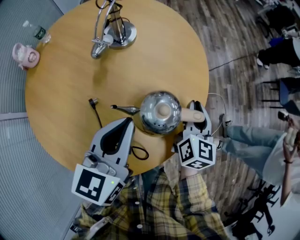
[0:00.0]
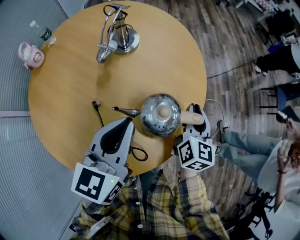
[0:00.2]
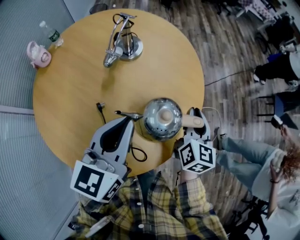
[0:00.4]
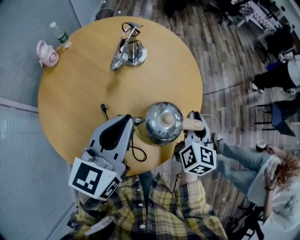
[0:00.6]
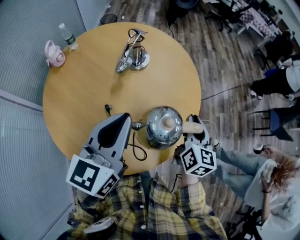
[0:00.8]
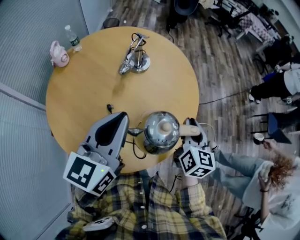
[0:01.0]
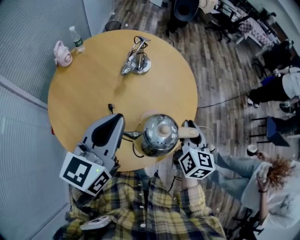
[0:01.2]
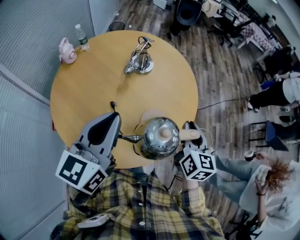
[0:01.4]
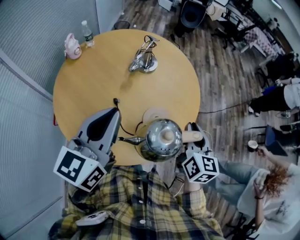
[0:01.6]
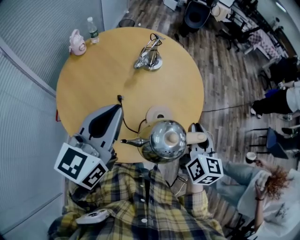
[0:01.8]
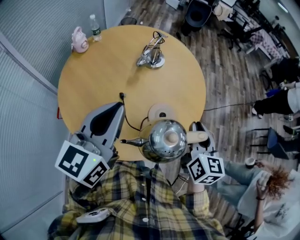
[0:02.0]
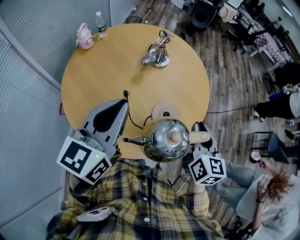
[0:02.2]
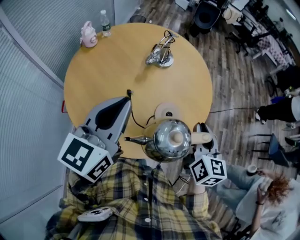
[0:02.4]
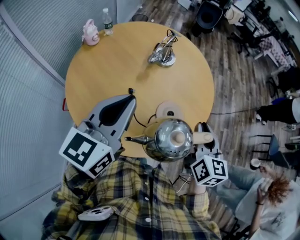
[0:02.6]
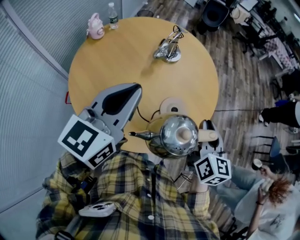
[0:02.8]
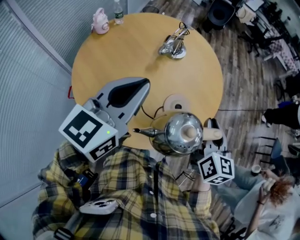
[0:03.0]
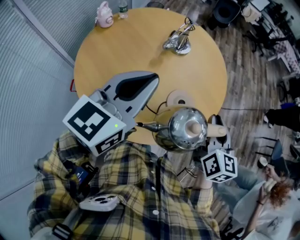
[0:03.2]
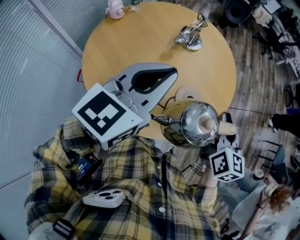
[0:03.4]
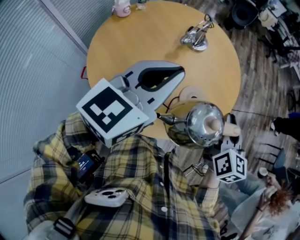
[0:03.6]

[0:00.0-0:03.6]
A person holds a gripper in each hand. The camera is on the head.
0:00.0 to 0:01.8: The left gripper heads upward, backward and to the left, covering about 20 cm. The right gripper goes roughly 20 cm upward and backward, and changes its angle by some 20 degrees.
0:01.8 to 0:03.6: There are only small adjustments of the grippers.

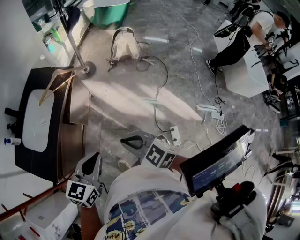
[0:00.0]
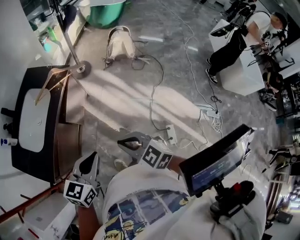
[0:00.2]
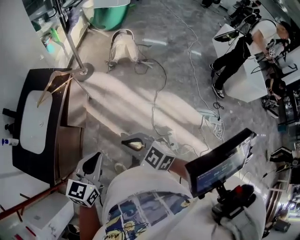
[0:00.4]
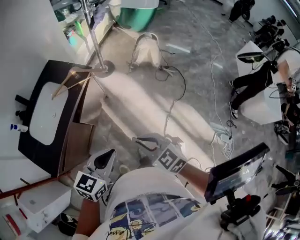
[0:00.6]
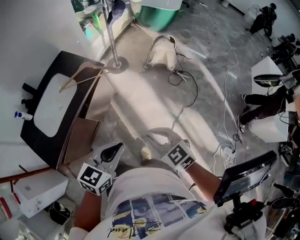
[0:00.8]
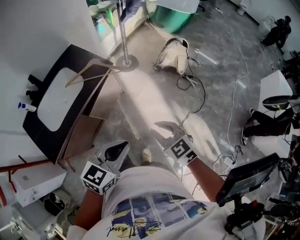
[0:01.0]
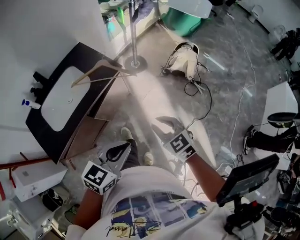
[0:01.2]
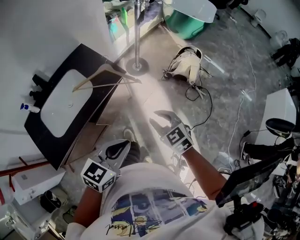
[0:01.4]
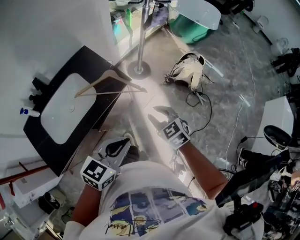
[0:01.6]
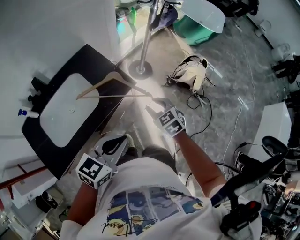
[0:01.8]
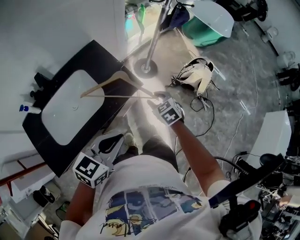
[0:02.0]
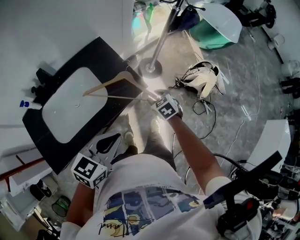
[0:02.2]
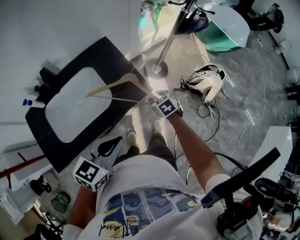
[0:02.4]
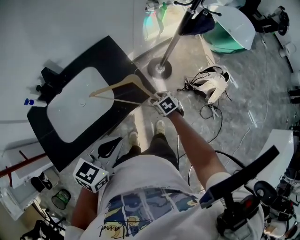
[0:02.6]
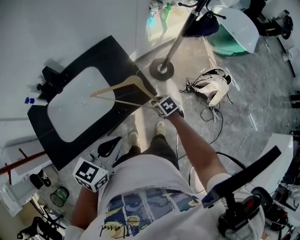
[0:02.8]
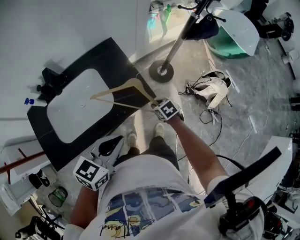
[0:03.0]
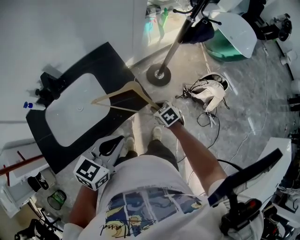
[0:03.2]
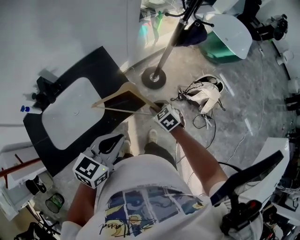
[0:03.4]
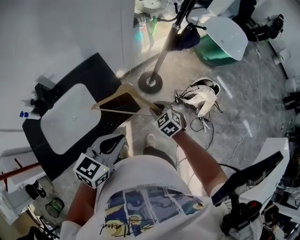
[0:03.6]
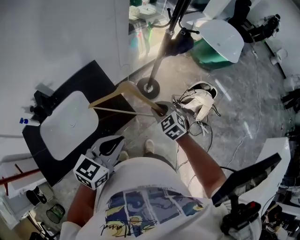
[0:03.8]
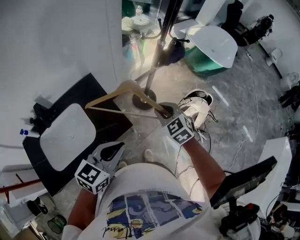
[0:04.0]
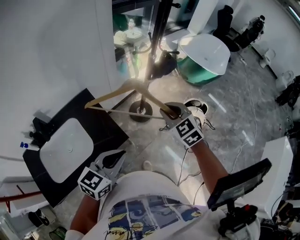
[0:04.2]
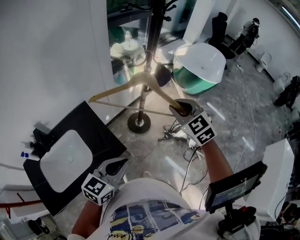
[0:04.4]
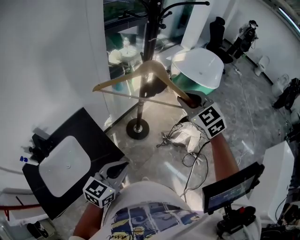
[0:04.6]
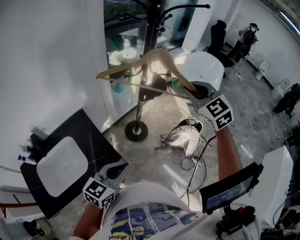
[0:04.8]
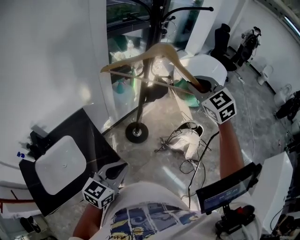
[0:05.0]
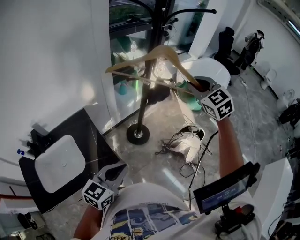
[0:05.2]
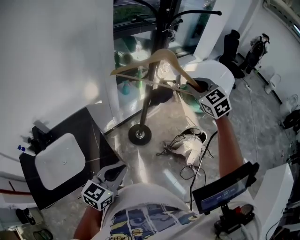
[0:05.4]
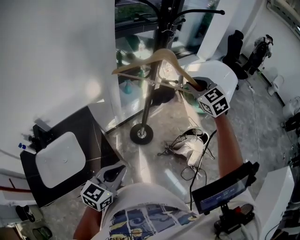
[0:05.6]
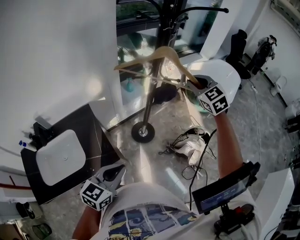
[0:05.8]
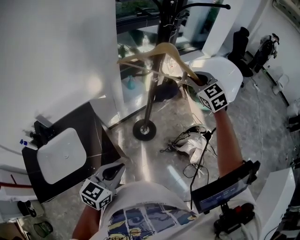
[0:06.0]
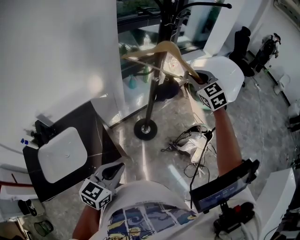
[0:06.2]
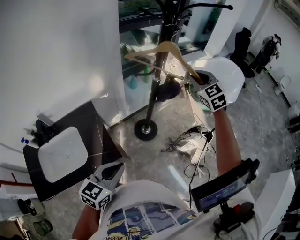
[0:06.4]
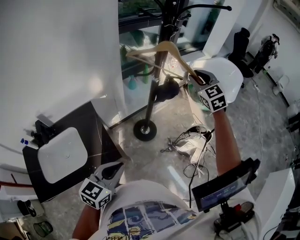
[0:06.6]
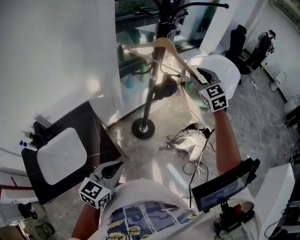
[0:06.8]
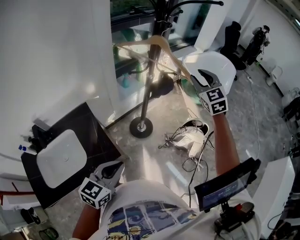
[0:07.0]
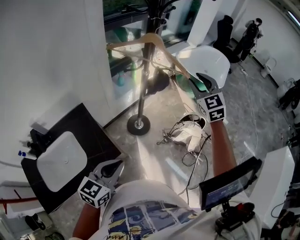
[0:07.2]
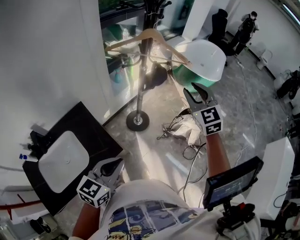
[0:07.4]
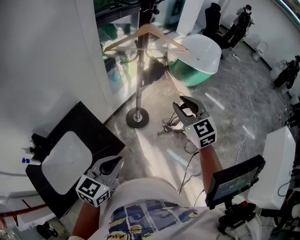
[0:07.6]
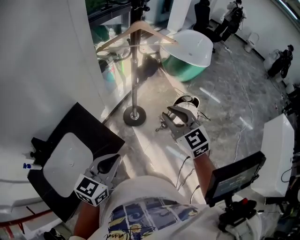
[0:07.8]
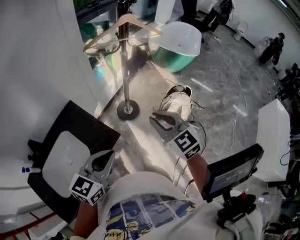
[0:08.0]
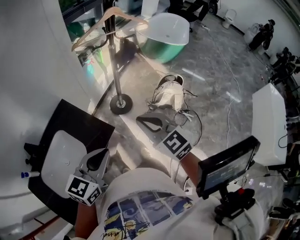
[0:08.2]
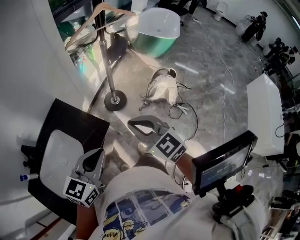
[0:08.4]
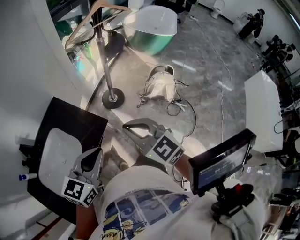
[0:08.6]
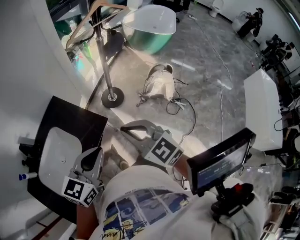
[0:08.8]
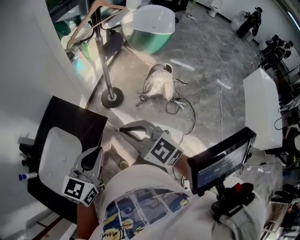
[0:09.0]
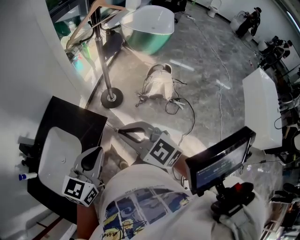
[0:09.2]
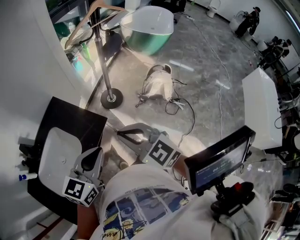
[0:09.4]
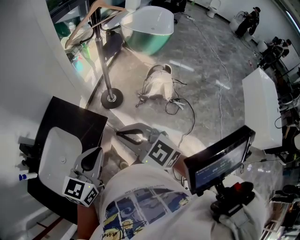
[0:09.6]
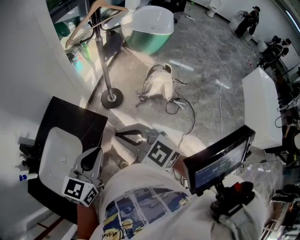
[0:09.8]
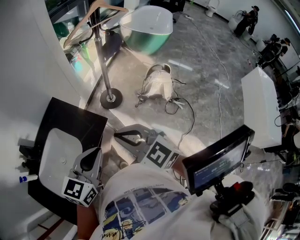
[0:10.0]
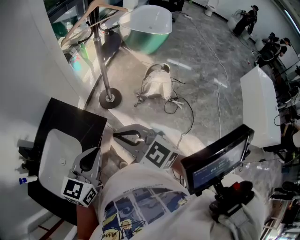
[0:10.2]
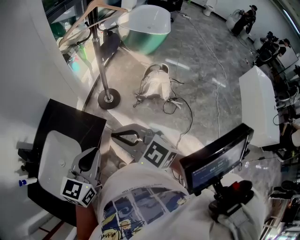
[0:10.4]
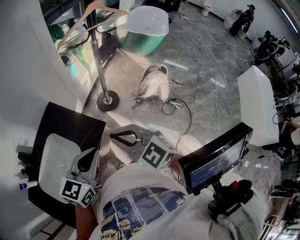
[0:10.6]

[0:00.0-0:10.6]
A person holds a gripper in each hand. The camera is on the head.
0:00.0 to 0:01.6: The two grippers go roughly 35 cm forward. The right gripper opens up.
0:01.6 to 0:03.0: The right gripper moves forward and downward, roughly 30 cm, and changes its angle by roughly 30 degrees; the left gripper shifts approximately 15 cm forward and to the left, and rotates roughly 20 degrees.
0:03.0 to 0:04.6: The right gripper moves upward and to the right, about 50 cm, and points its fingers about 40 degrees further upward; the left gripper moves to the right and forward, some 20 cm.
0:04.6 to 0:06.0: The right gripper is displaced forward by about 20 cm.
0:06.0 to 0:07.6: The right gripper is displaced backward by about 25 cm, and changes its angle by some 20 degrees, while the left gripper ends up approximately 5 cm from where it was.
0:07.6 to 0:09.0: The right gripper is displaced backward and to the left by approximately 30 cm, and closes. The left gripper is displaced backward by about 10 cm.
0:09.0 to 0:10.6: There are only small adjustments of the grippers.

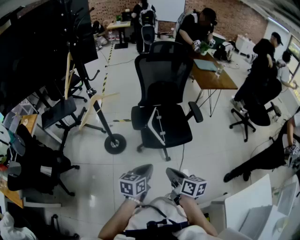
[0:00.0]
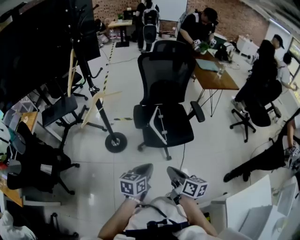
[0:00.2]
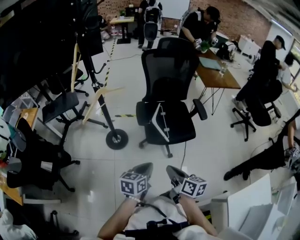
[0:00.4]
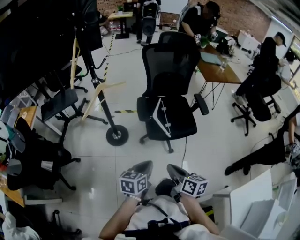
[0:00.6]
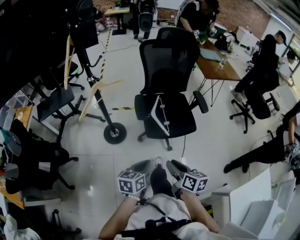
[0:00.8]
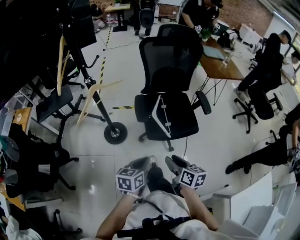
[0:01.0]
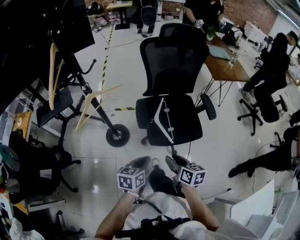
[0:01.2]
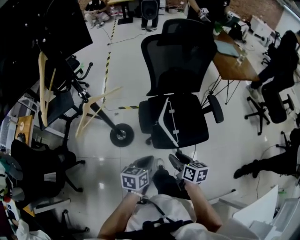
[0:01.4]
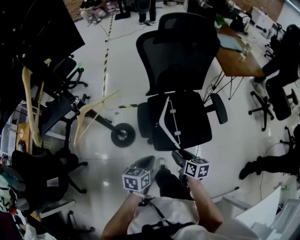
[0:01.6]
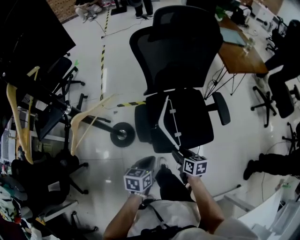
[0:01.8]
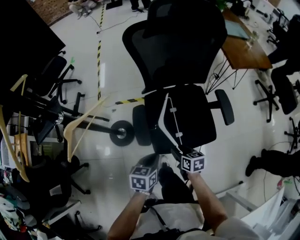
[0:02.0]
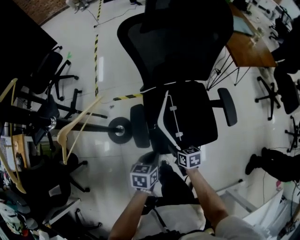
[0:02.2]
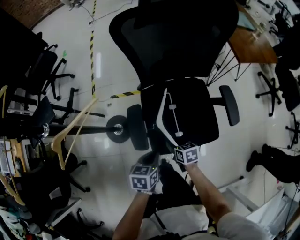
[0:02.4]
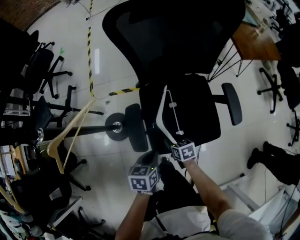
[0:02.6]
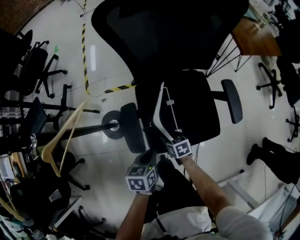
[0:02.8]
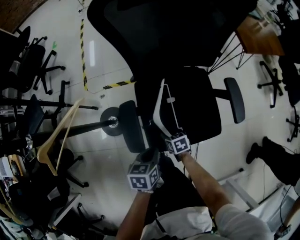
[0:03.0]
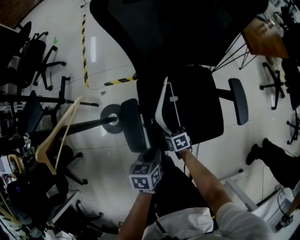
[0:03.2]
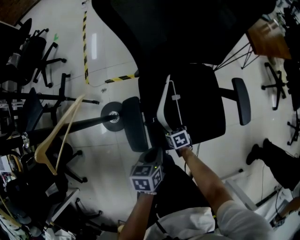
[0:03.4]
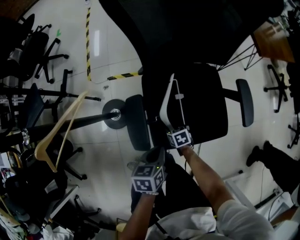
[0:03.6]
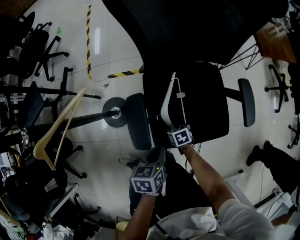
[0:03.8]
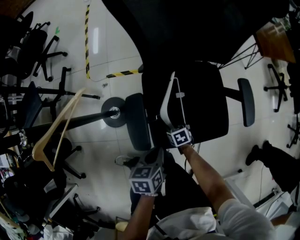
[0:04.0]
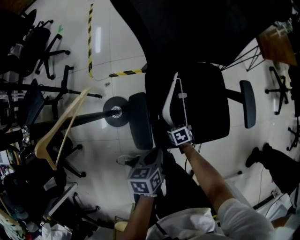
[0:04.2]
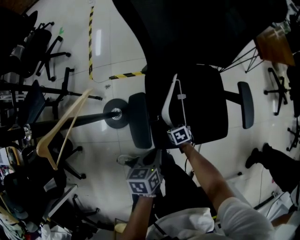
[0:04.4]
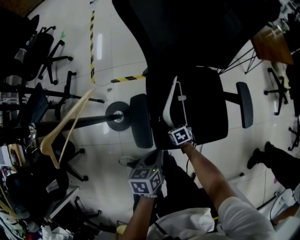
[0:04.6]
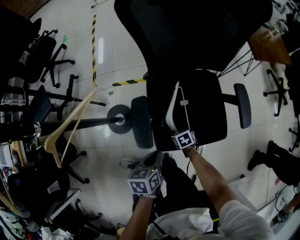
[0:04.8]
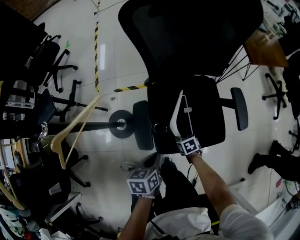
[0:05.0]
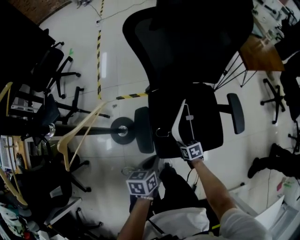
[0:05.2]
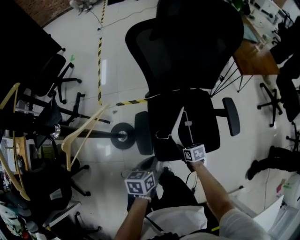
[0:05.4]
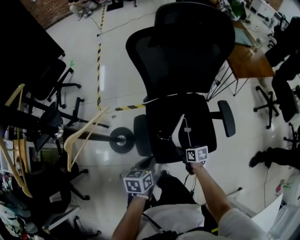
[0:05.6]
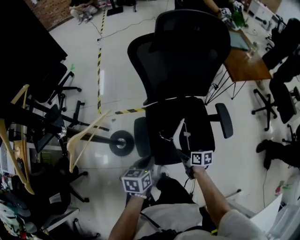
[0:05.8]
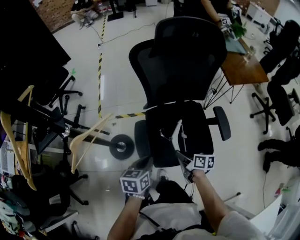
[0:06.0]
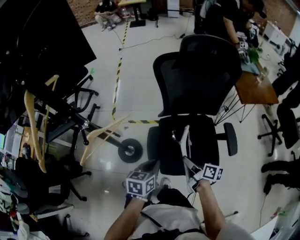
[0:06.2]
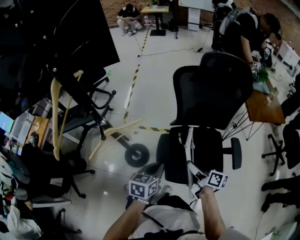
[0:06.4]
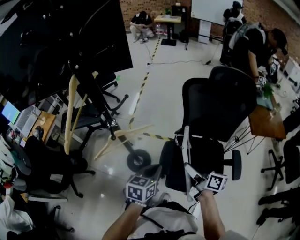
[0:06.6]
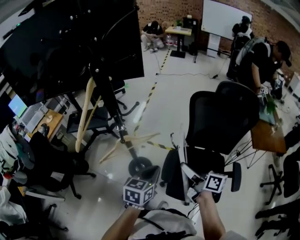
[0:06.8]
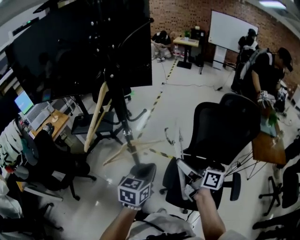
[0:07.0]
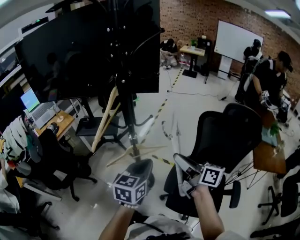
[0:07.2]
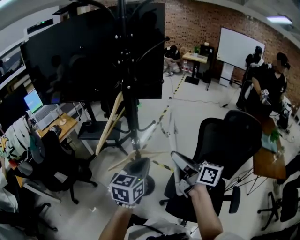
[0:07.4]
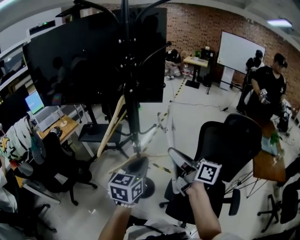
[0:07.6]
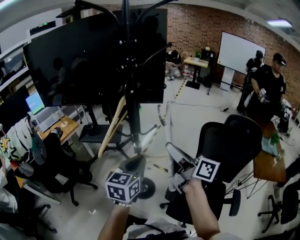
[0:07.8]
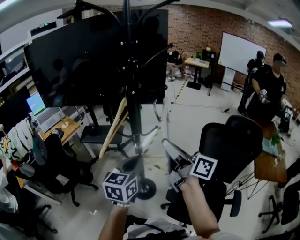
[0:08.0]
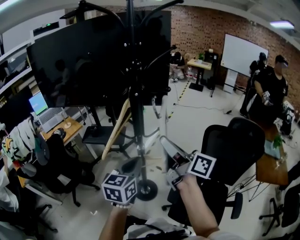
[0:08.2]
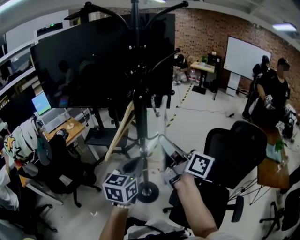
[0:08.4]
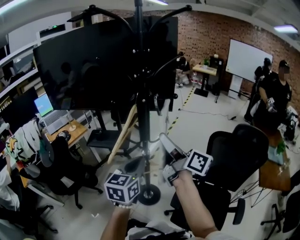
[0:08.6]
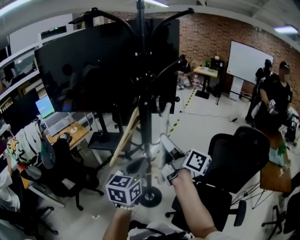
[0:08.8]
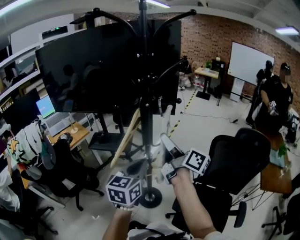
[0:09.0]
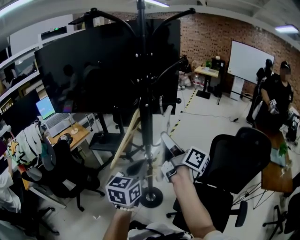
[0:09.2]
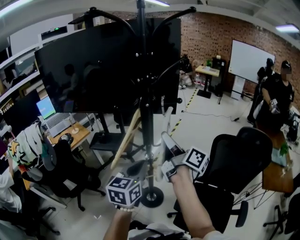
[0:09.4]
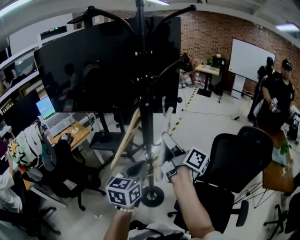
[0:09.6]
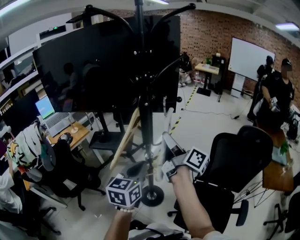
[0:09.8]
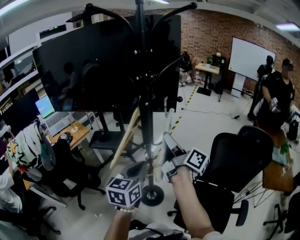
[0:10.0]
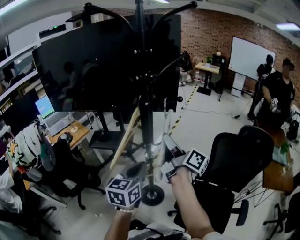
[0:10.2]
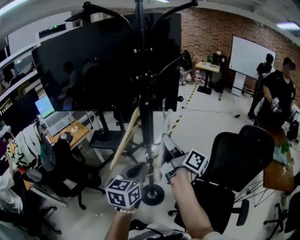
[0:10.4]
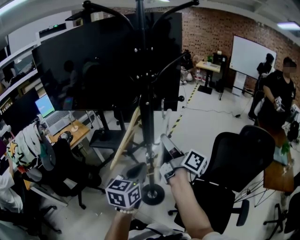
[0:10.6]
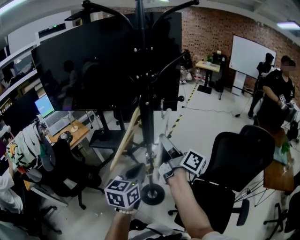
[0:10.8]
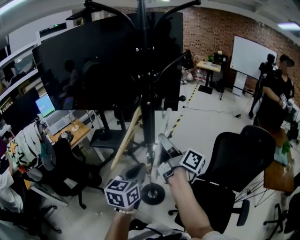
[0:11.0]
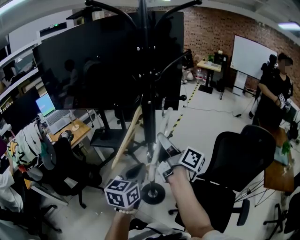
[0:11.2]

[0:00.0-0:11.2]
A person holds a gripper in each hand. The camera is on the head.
0:00.0 to 0:01.6: The two grippers go about 30 cm forward and downward. The right gripper opens its fingers.
0:01.6 to 0:03.2: The right gripper shifts roughly 35 cm downward and forward, and turns by some 30 degrees; the left gripper moves forward and downward, about 20 cm.
0:03.2 to 0:04.8: The grippers make only small movements.
0:04.8 to 0:06.4: The left gripper is displaced upward by some 20 cm, and rotates approximately 20 degrees. Meanwhile the right gripper is displaced upward by some 40 cm, and angles its fingers upward, by roughly 50 degrees.
0:06.4 to 0:08.0: Both grippers travel together upward, roughly 30 cm. The left gripper changes its angle by some 40 degrees, while the right gripper angles its fingers upward, by about 30 degrees.
0:08.0 to 0:09.6: The right gripper travels forward by roughly 10 cm.
0:09.6 to 0:11.2: There are only small adjustments of the grippers.
